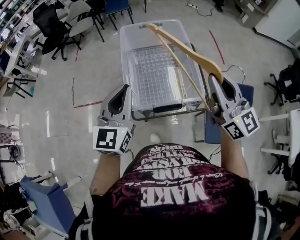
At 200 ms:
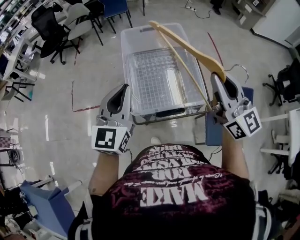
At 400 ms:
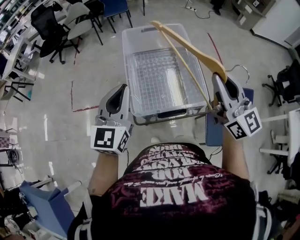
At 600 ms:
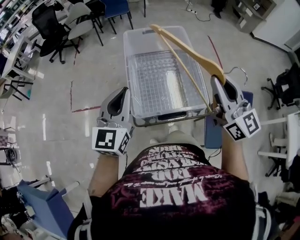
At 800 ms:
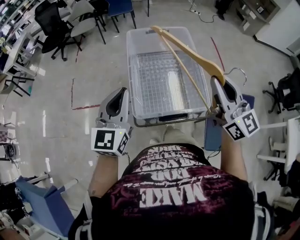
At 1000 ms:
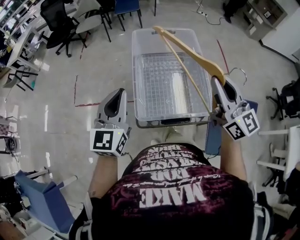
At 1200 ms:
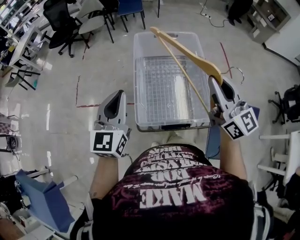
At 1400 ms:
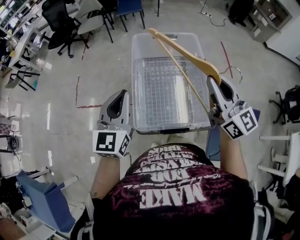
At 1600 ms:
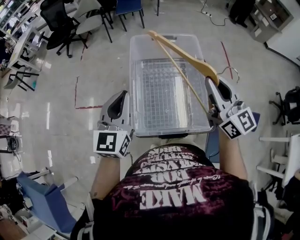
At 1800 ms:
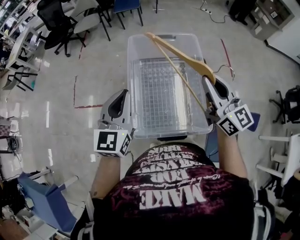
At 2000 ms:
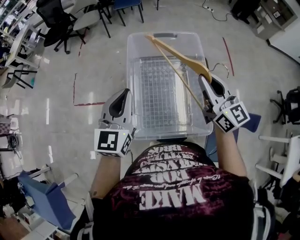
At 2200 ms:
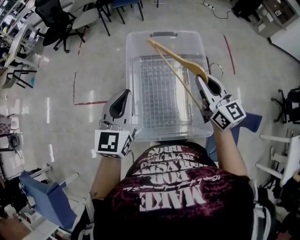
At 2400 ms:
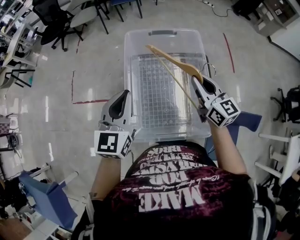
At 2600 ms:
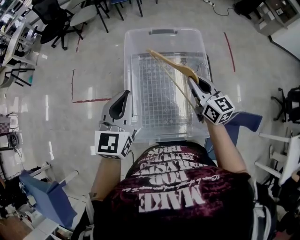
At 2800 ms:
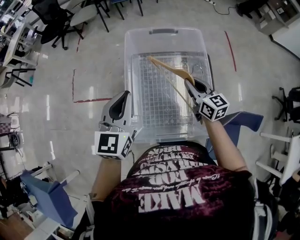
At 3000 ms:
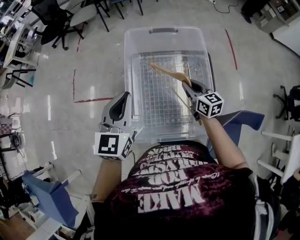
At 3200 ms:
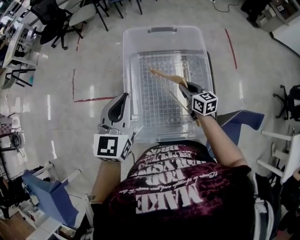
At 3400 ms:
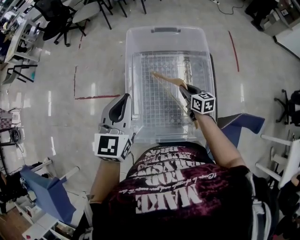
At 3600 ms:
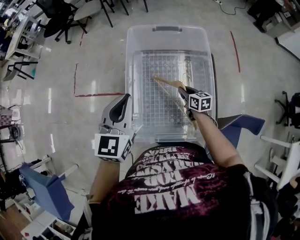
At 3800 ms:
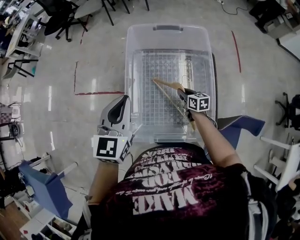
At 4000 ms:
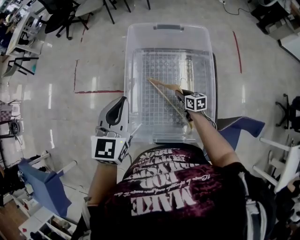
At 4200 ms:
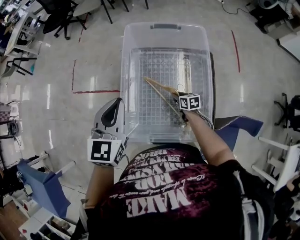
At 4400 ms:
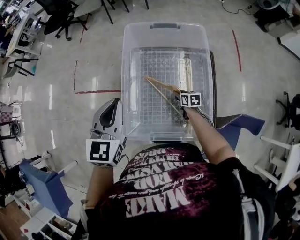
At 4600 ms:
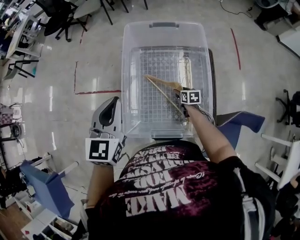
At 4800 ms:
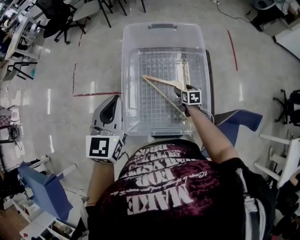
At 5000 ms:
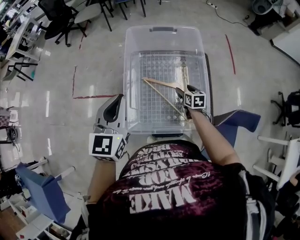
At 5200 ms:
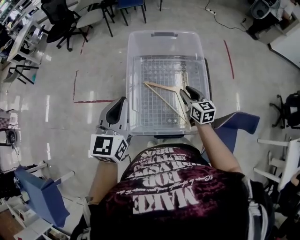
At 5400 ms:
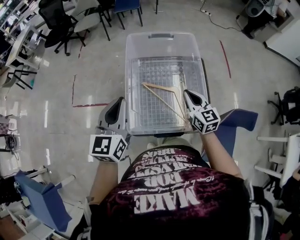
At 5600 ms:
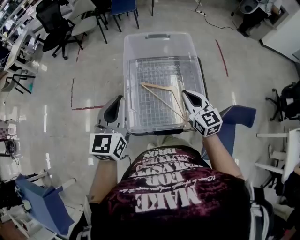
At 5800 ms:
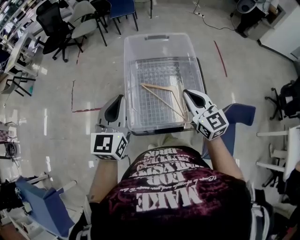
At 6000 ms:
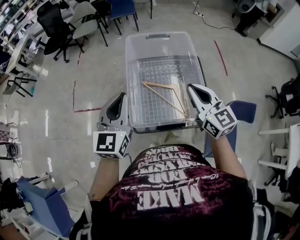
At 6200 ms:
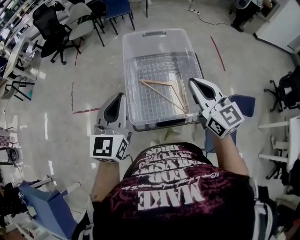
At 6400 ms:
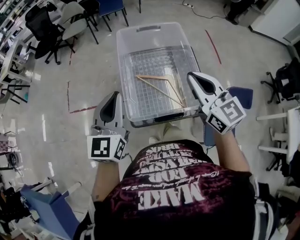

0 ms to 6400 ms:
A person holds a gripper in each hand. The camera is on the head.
0 ms to 1600 ms: The two grippers go roughly 15 cm forward.
1600 ms to 3200 ms: The right gripper shifts about 30 cm downward, and tilts its fingers some 30 degrees downward. The left gripper travels forward by approximately 5 cm.
3200 ms to 4800 ms: The right gripper moves downward, roughly 15 cm, swivels roughly 30 degrees, and opens.
4800 ms to 6400 ms: The left gripper shifts about 10 cm backward and upward. Meanwhile the right gripper shifts approximately 40 cm upward, tilts its fingers some 50 degrees upward, and closes its fingers.

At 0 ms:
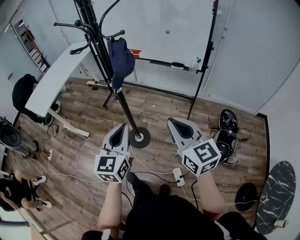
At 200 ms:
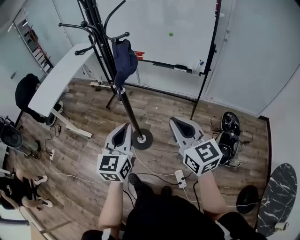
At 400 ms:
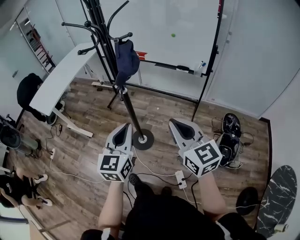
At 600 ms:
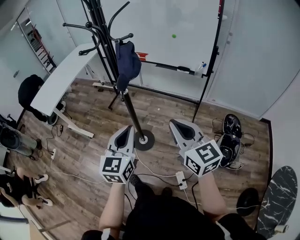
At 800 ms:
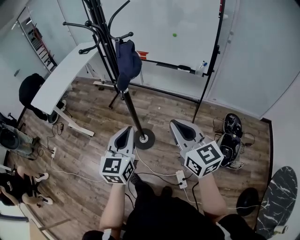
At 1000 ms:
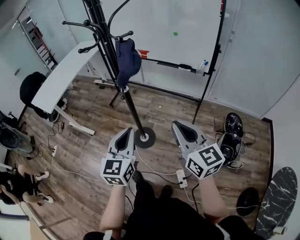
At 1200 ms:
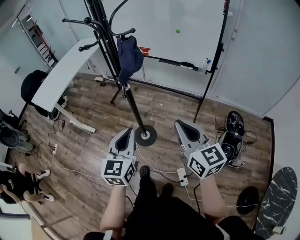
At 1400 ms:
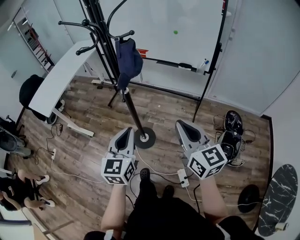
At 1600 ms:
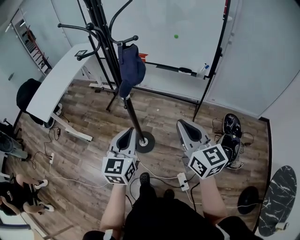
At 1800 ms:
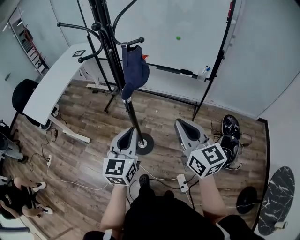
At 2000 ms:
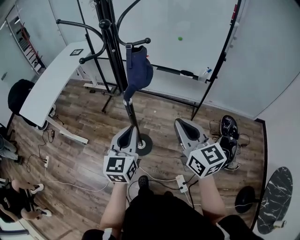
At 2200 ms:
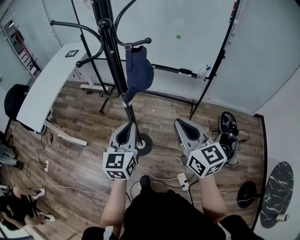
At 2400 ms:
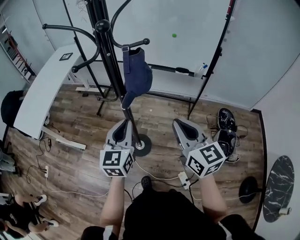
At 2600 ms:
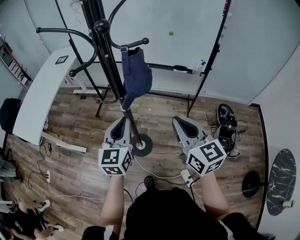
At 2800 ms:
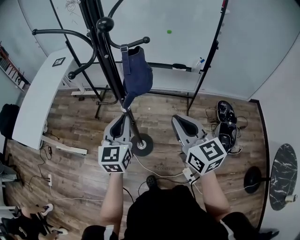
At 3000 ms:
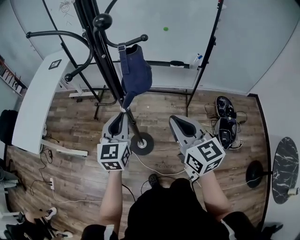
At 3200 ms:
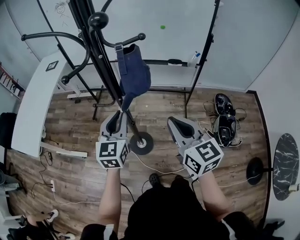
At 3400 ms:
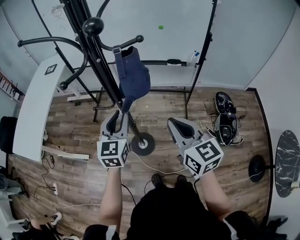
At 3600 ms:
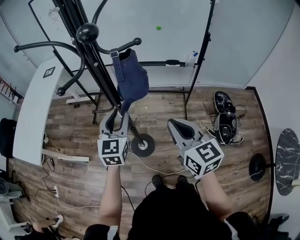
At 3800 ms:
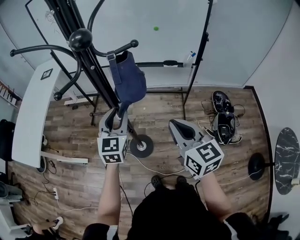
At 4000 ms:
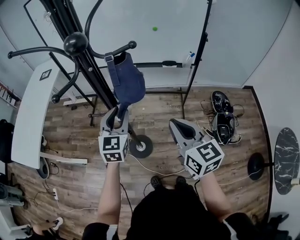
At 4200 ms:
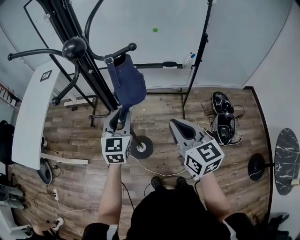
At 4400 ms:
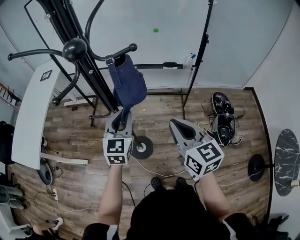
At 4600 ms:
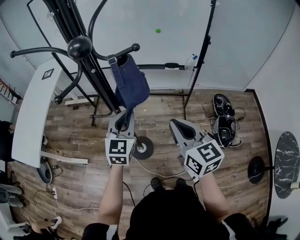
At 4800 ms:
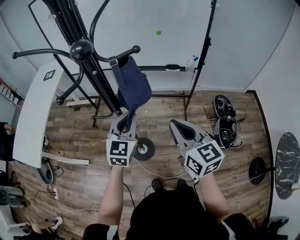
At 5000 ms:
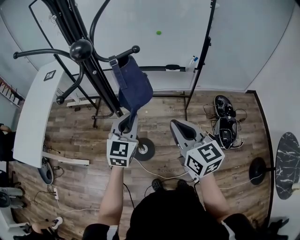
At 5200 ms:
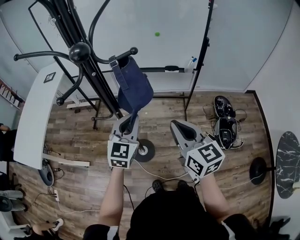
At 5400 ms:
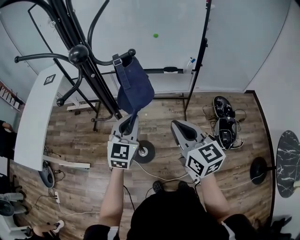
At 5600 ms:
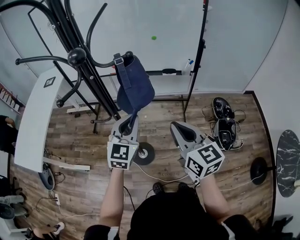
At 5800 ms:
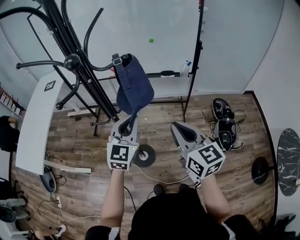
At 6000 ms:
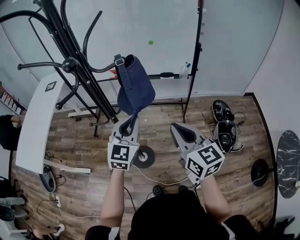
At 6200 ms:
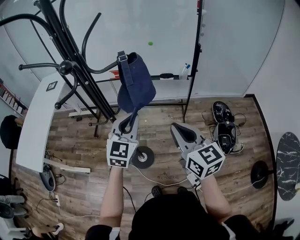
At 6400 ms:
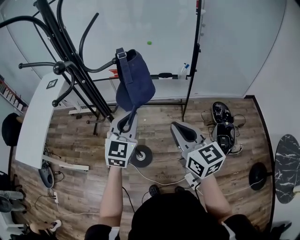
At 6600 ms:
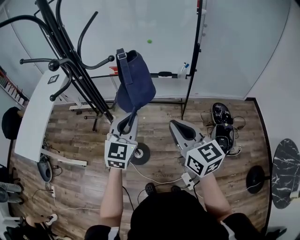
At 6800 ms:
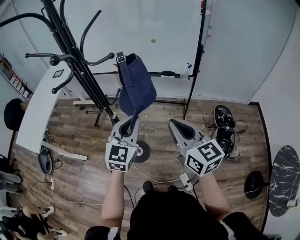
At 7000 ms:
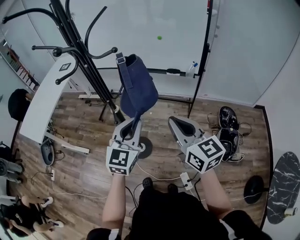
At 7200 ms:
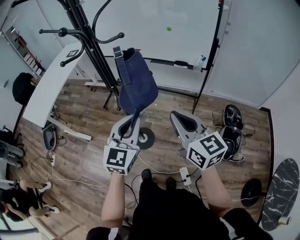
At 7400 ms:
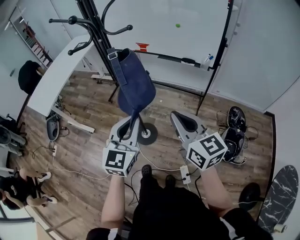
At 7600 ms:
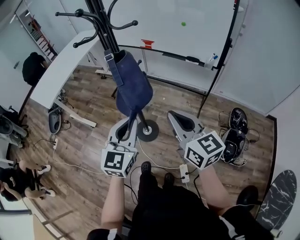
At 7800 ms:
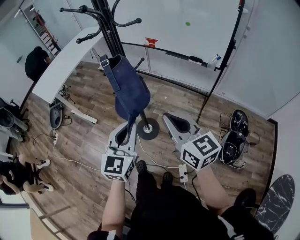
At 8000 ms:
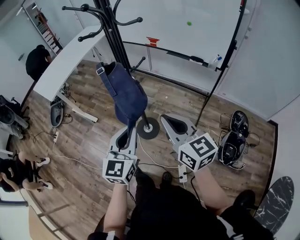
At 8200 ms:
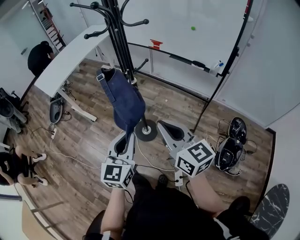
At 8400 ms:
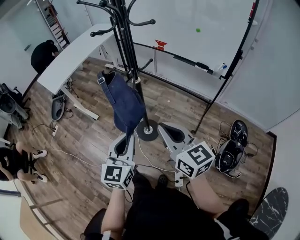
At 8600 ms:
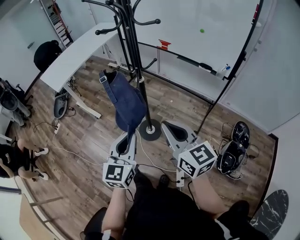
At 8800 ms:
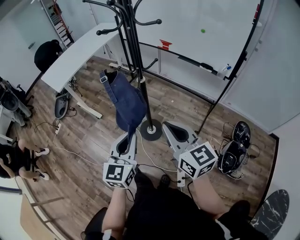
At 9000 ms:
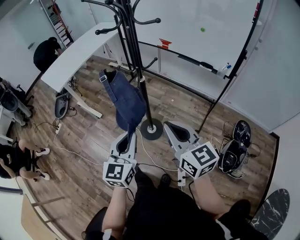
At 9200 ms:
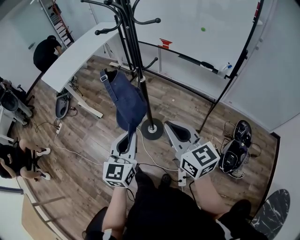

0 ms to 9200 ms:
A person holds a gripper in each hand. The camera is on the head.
0 ms to 1600 ms: The grippers stay close to where they were, moving slightly.
1600 ms to 3000 ms: The left gripper goes some 20 cm forward and to the left. The right gripper shifts about 15 cm to the left and forward.
3000 ms to 4600 ms: The left gripper goes about 5 cm forward, and opens, then closes again.
4600 ms to 6200 ms: The right gripper changes place by about 5 cm, while the left gripper is displaced to the right by roughly 5 cm.
6200 ms to 7600 ms: The left gripper moves backward, some 20 cm, and turns by some 30 degrees. Meanwhile the right gripper goes roughly 5 cm backward, and turns by roughly 30 degrees.
7600 ms to 9200 ms: The two grippers go about 5 cm to the left.

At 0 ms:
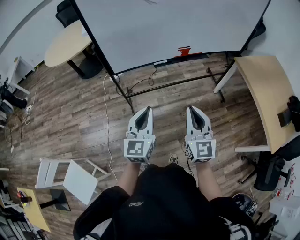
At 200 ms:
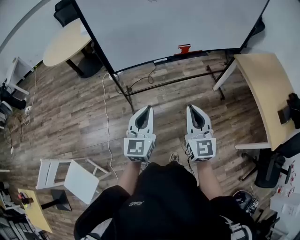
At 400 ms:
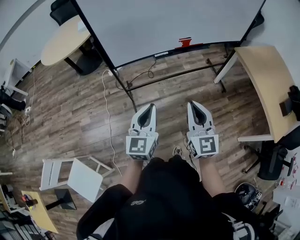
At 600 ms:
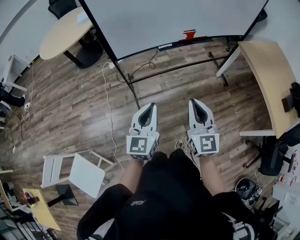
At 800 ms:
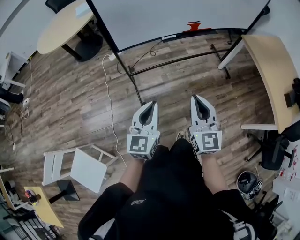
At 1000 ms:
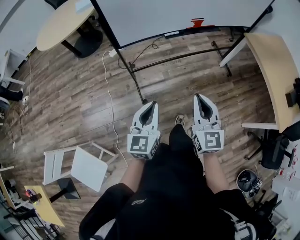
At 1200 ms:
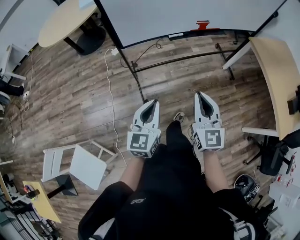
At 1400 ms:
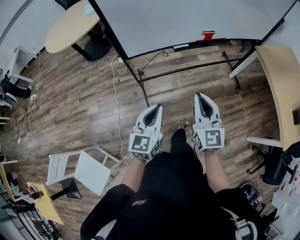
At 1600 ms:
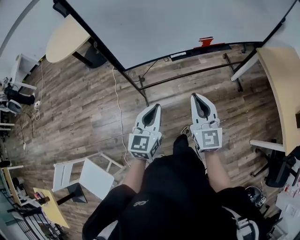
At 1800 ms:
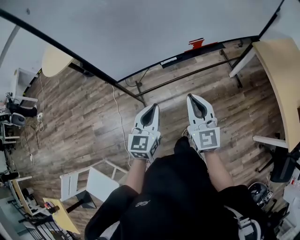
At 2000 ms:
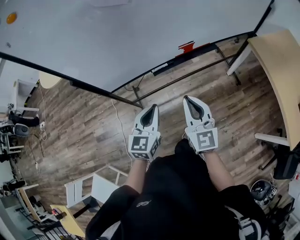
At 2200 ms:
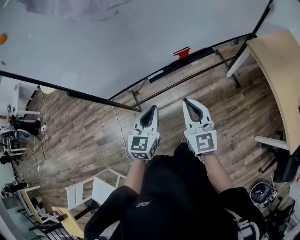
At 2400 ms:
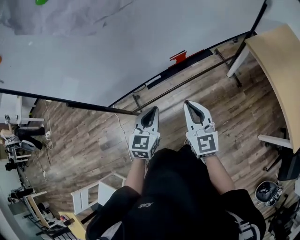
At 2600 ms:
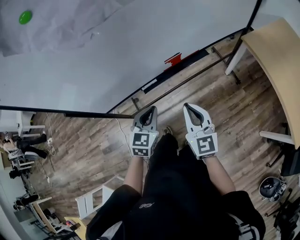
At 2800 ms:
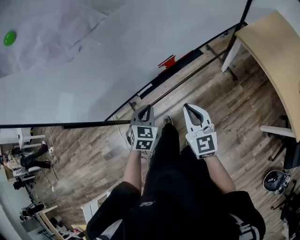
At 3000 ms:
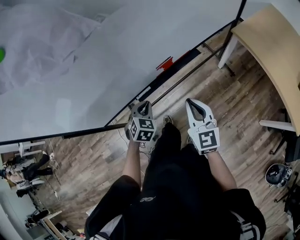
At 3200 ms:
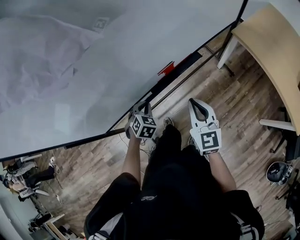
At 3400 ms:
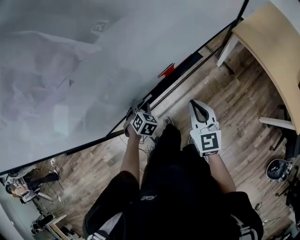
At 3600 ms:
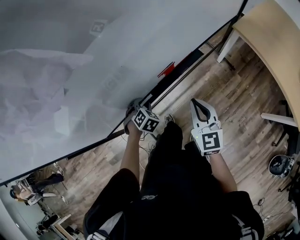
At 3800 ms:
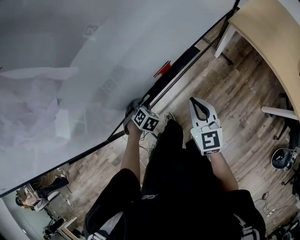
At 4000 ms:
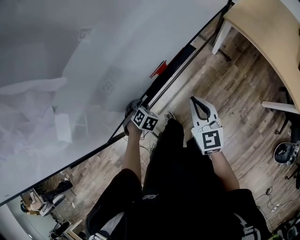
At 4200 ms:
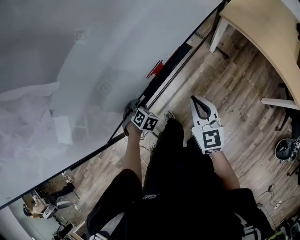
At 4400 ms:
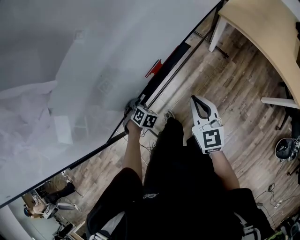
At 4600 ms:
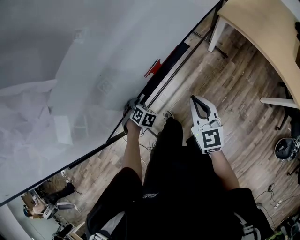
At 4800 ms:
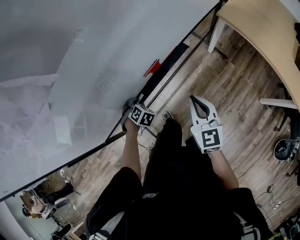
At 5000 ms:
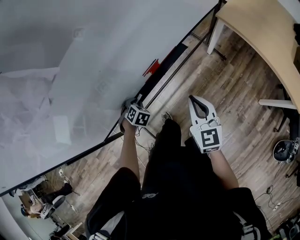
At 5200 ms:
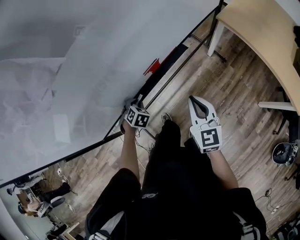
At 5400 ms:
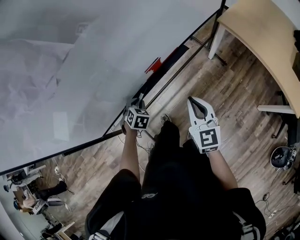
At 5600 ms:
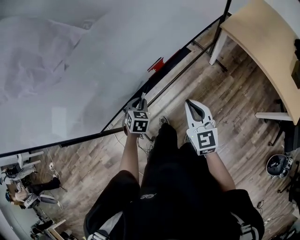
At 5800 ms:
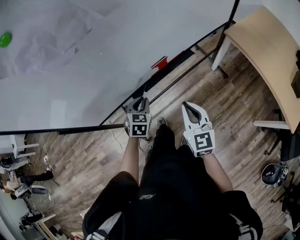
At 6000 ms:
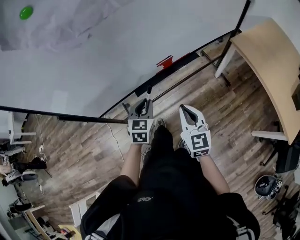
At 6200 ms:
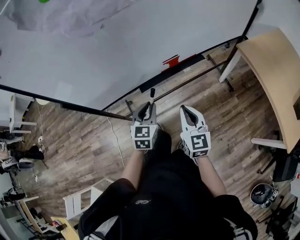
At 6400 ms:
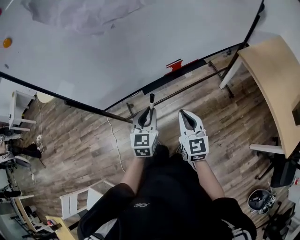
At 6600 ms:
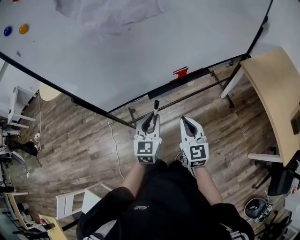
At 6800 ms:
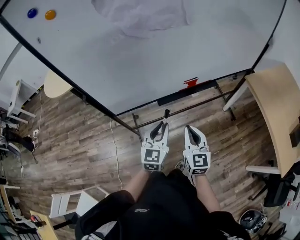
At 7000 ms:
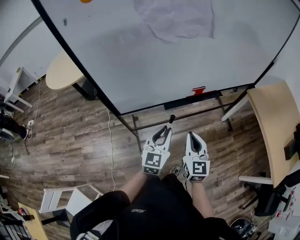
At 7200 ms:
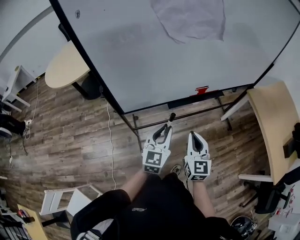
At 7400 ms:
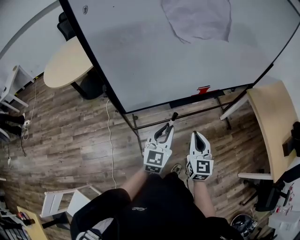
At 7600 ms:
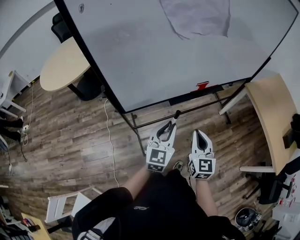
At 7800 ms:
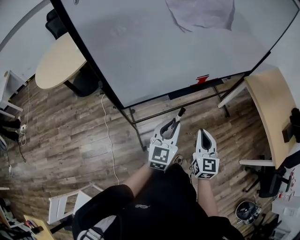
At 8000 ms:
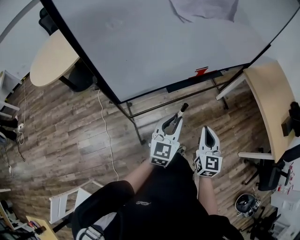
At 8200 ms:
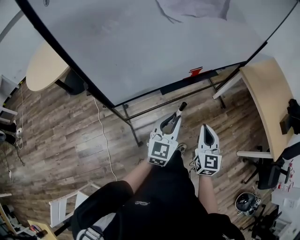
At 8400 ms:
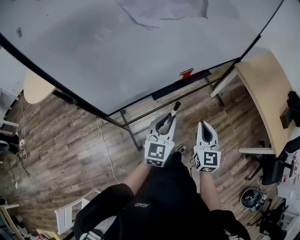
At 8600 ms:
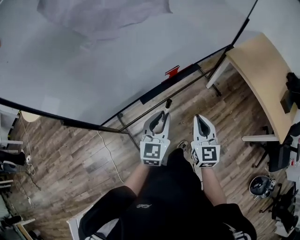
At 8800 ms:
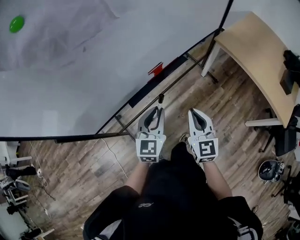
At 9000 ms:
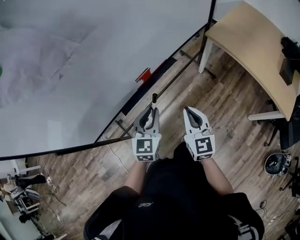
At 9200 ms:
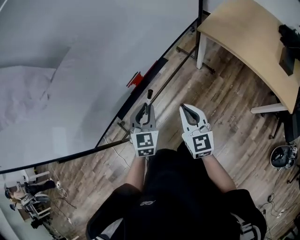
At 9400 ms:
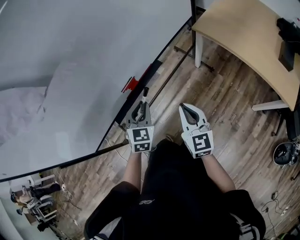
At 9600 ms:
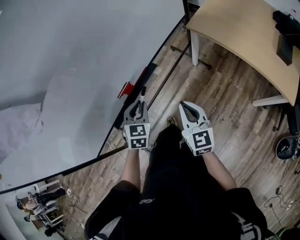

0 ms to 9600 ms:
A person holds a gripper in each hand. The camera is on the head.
0 ms to 1600 ms: The left gripper moves forward, downward and to the left, roughly 15 cm, while the right gripper travels forward and to the left by some 15 cm.
1600 ms to 3200 ms: The left gripper heads forward and downward, covering roughly 40 cm, and tilts its fingers roughly 40 degrees downward. The right gripper shifts approximately 30 cm forward and to the right.
3200 ms to 4800 ms: The left gripper heads downward, covering about 10 cm, and turns by approximately 20 degrees, while the right gripper shifts by about 5 cm.
4800 ms to 6400 ms: The left gripper goes roughly 30 cm upward and backward, and points its fingers some 40 degrees further upward. The right gripper goes approximately 15 cm backward and to the left.
6400 ms to 8000 ms: The left gripper goes roughly 10 cm to the left, backward and upward, while the right gripper is displaced to the left and backward by roughly 10 cm.
8000 ms to 9600 ms: The right gripper moves to the right and forward, some 35 cm; the left gripper travels forward and to the right by approximately 35 cm, and rotates approximately 40 degrees.
